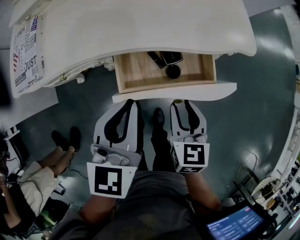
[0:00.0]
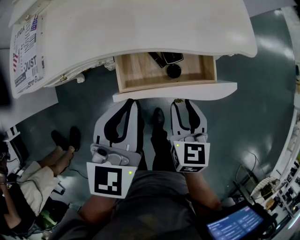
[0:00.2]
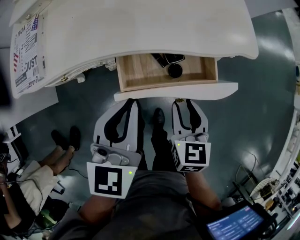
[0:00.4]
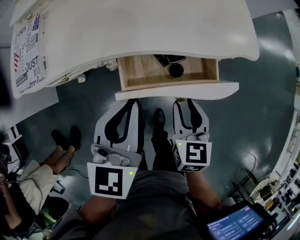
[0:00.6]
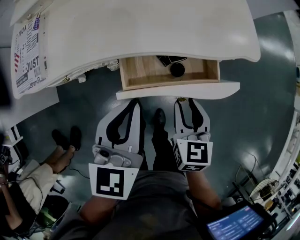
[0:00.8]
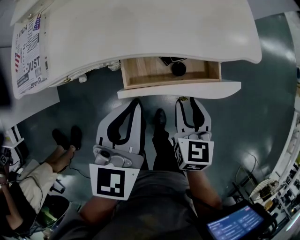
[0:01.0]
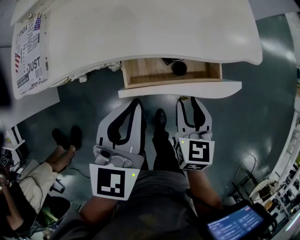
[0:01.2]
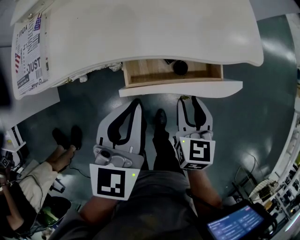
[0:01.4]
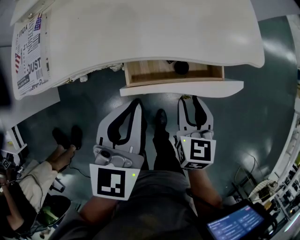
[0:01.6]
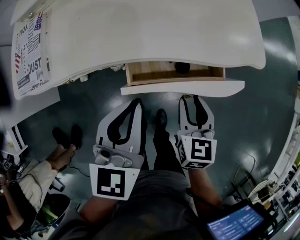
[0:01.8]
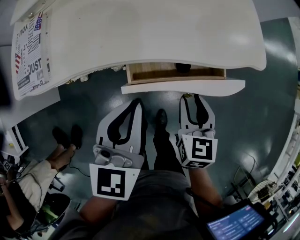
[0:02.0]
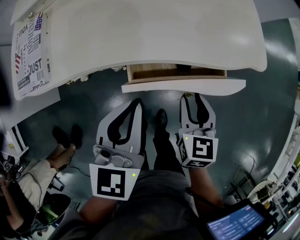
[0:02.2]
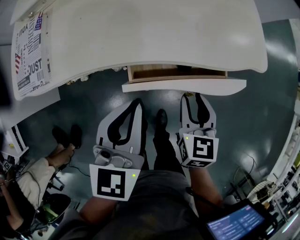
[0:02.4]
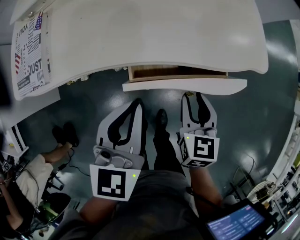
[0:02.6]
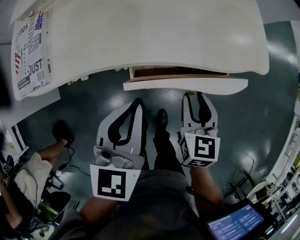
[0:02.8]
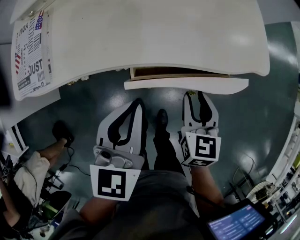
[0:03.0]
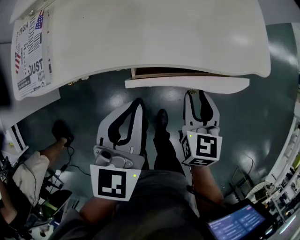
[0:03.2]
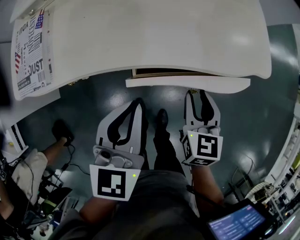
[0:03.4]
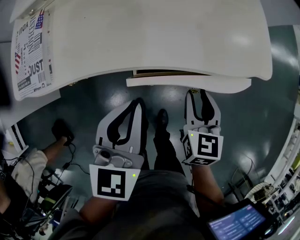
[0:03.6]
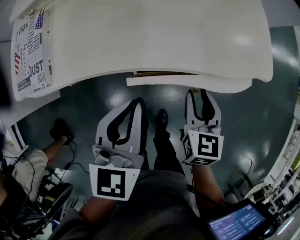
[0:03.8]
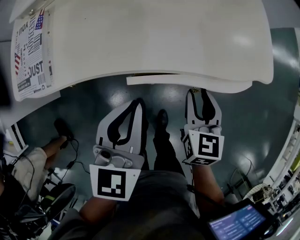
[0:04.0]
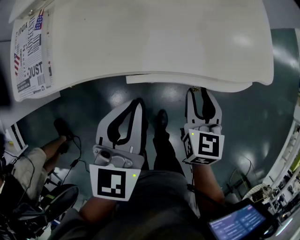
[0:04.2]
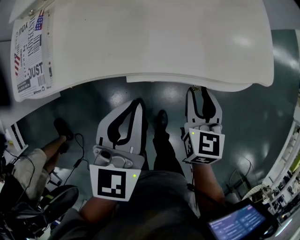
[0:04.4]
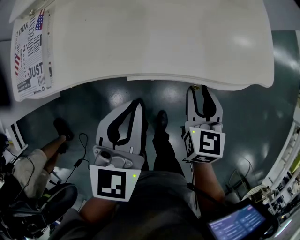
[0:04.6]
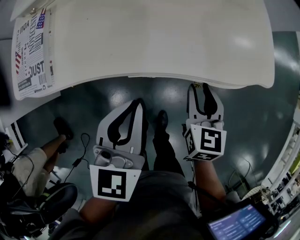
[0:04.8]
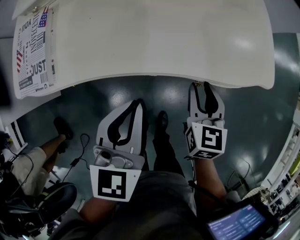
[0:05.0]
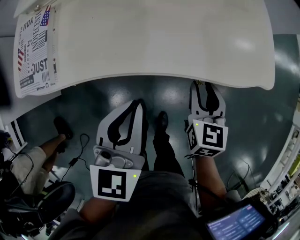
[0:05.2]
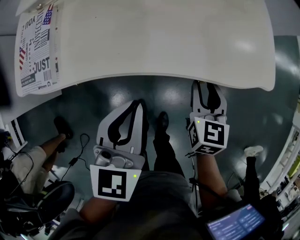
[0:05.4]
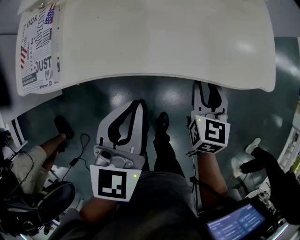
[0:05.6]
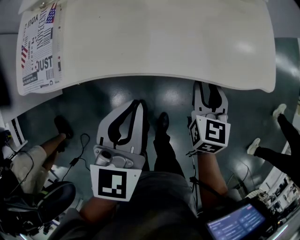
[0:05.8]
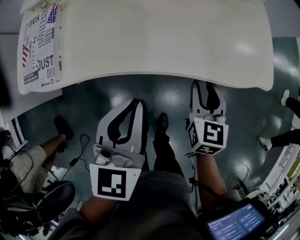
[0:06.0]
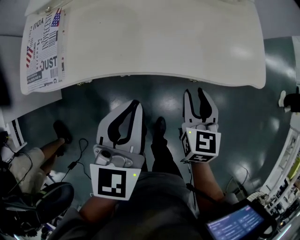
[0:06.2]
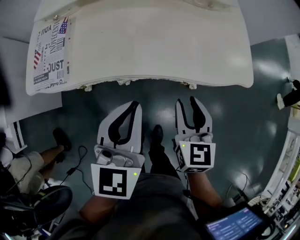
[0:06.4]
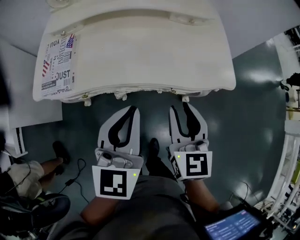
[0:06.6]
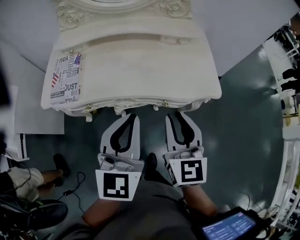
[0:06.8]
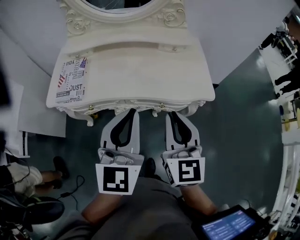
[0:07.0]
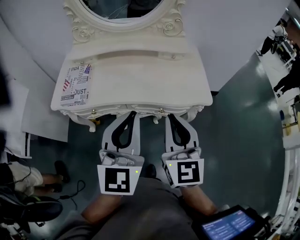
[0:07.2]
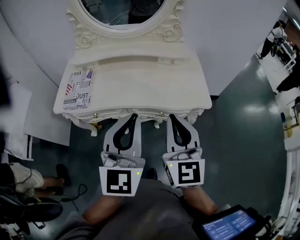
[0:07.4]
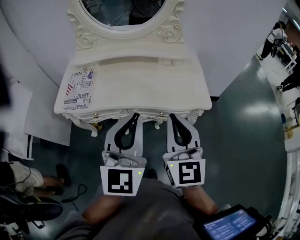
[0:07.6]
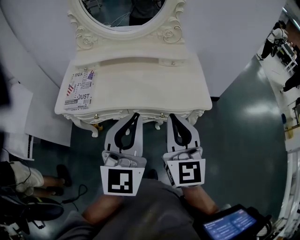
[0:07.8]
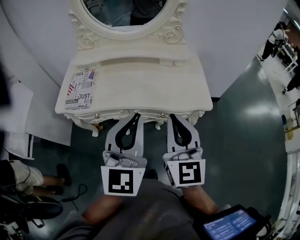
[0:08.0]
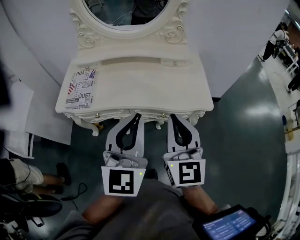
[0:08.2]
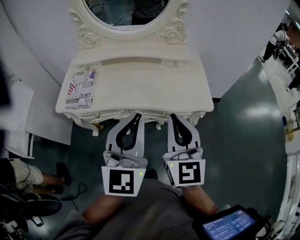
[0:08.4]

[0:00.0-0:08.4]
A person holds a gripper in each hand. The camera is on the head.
0:00.0 to 0:01.4: The grippers make only small movements.
0:01.4 to 0:02.8: The grippers stay close to where they were, moving slightly.
0:02.8 to 0:04.2: The grippers stay close to where they were, moving slightly.
0:04.2 to 0:05.6: The grippers stay close to where they were, moving slightly.
0:05.6 to 0:07.0: The left gripper goes some 25 cm upward, and swivels some 20 degrees, while the right gripper heads upward and backward, covering approximately 35 cm, rotates about 30 degrees, and closes.
0:07.0 to 0:08.4: The right gripper shifts by approximately 5 cm.

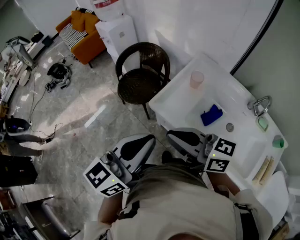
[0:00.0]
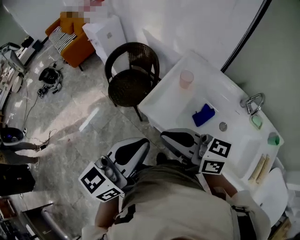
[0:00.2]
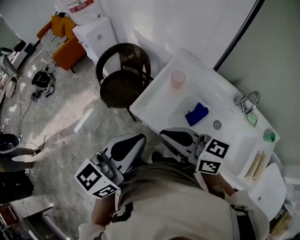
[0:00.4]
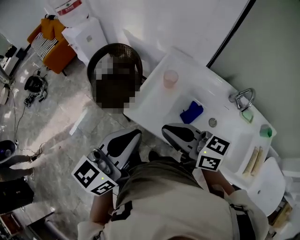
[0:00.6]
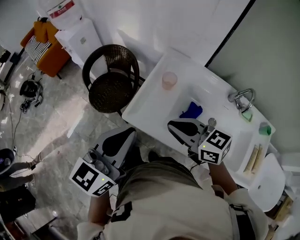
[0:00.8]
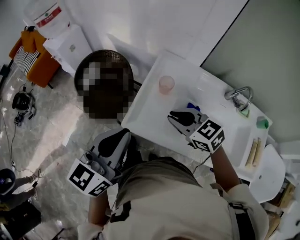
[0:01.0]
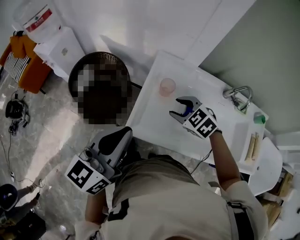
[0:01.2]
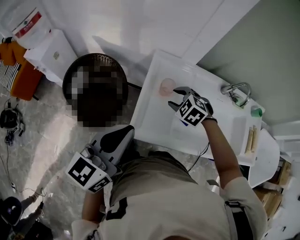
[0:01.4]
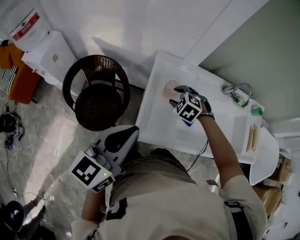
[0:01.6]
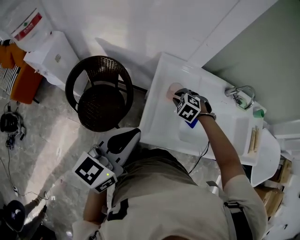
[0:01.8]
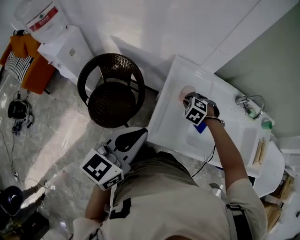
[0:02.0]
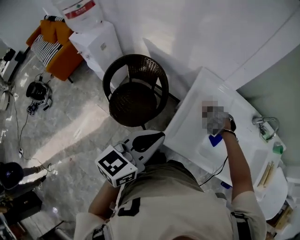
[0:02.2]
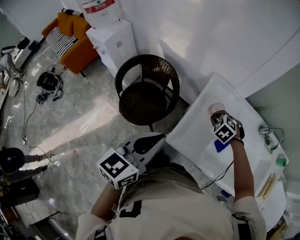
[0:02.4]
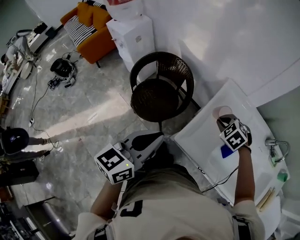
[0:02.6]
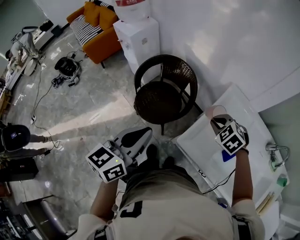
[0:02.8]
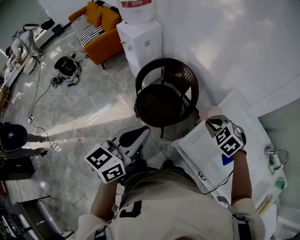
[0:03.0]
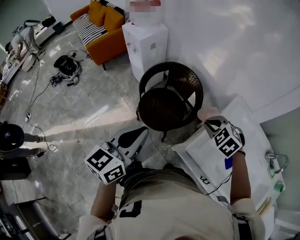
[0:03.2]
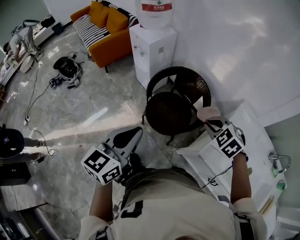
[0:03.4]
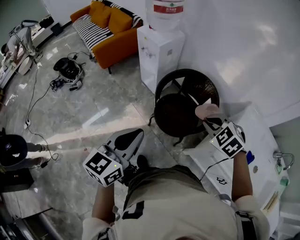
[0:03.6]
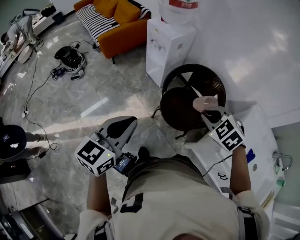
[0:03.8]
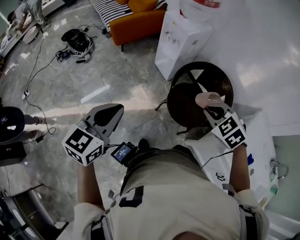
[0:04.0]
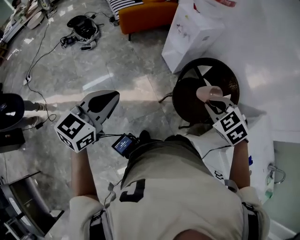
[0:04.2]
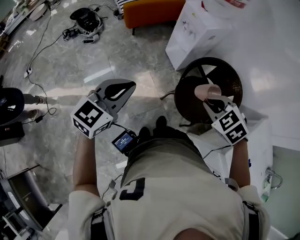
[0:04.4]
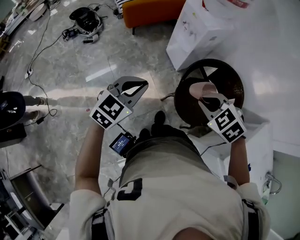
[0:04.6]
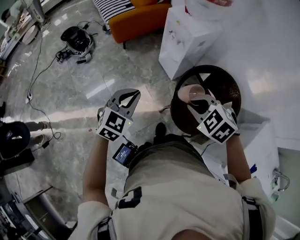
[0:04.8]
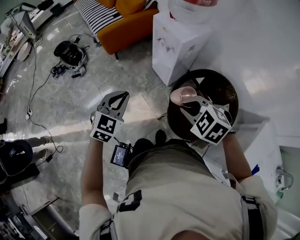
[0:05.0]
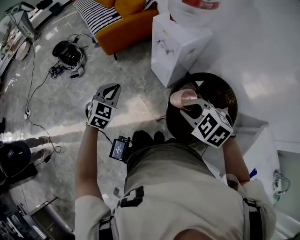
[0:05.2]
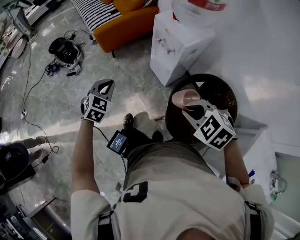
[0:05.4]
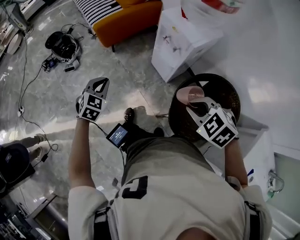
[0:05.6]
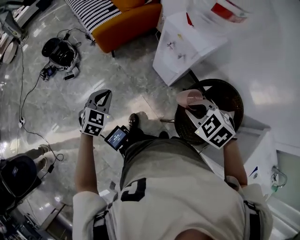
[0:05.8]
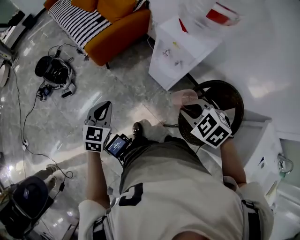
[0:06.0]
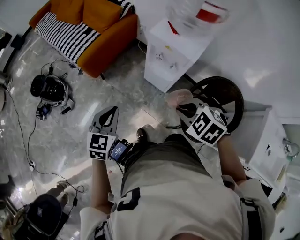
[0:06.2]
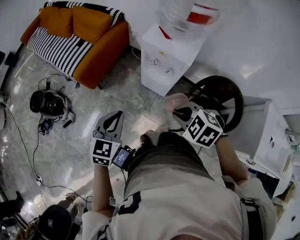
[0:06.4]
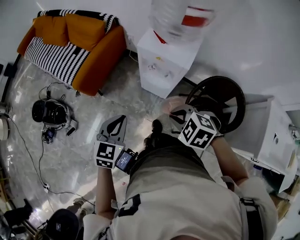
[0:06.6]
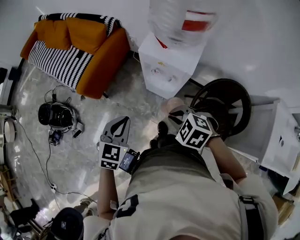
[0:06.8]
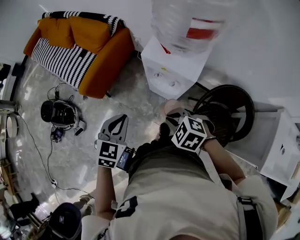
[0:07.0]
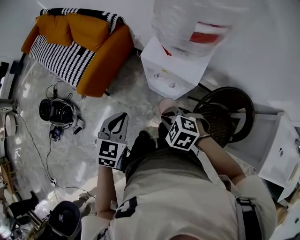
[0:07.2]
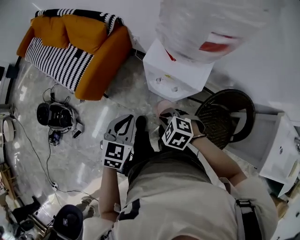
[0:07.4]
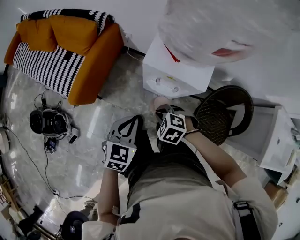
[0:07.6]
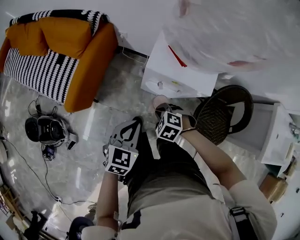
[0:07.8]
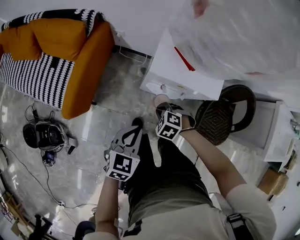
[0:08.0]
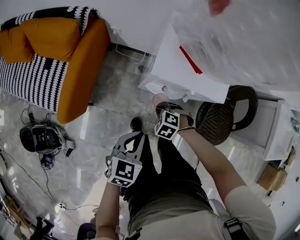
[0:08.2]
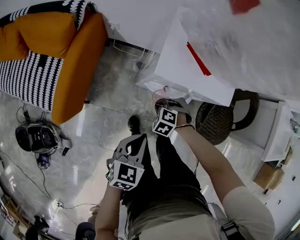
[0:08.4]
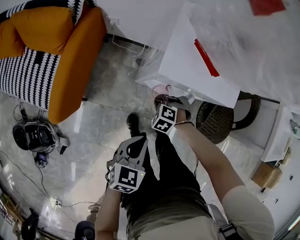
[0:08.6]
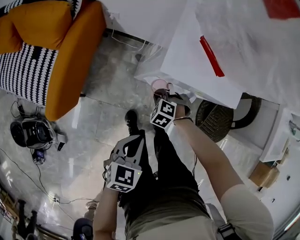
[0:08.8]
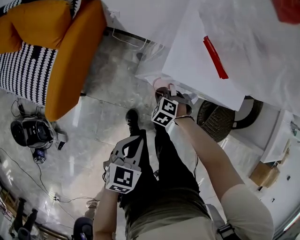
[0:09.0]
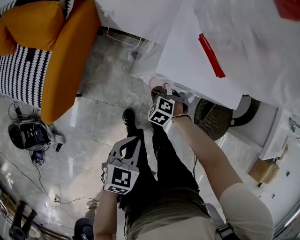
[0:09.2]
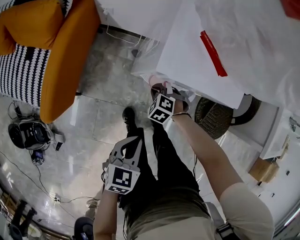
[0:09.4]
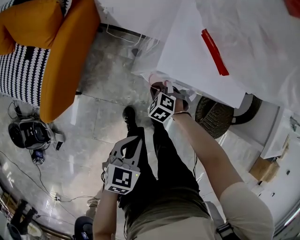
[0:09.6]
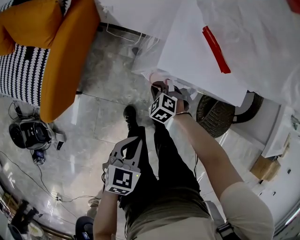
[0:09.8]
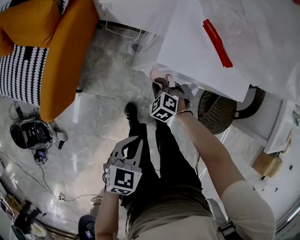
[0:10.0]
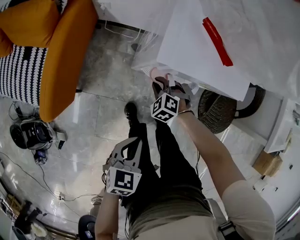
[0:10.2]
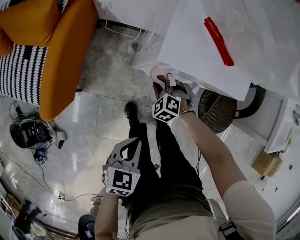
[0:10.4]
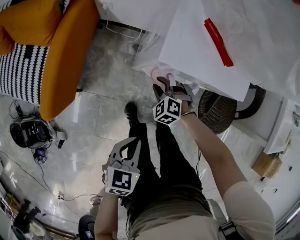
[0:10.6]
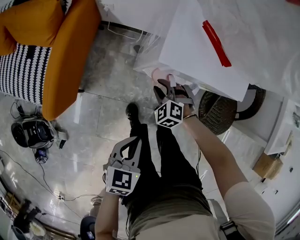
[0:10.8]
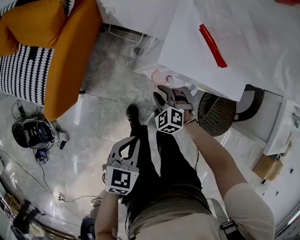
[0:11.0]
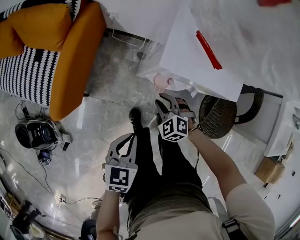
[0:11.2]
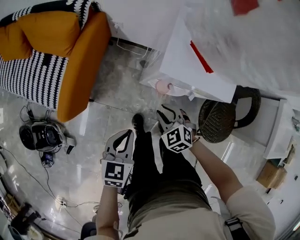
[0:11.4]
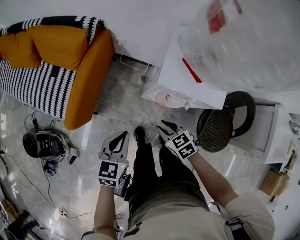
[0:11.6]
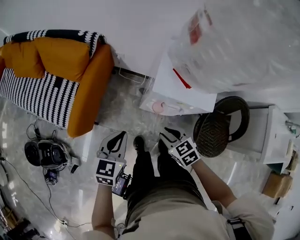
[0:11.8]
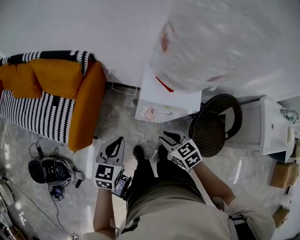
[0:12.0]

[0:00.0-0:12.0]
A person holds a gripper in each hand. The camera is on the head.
0:00.0 to 0:01.6: The right gripper changes place by about 40 cm, tilts its fingers about 60 degrees downward, and opens its fingers. The left gripper shifts by roughly 30 cm, and rotates about 30 degrees.
0:01.6 to 0:03.0: The right gripper shifts by about 20 cm, turns by approximately 30 degrees, and closes its fingers; the left gripper ends up roughly 20 cm from where it was, and changes its angle by about 40 degrees.
0:03.0 to 0:04.4: The two grippers travel together, to the left, about 50 cm. The left gripper rotates approximately 20 degrees.
0:04.4 to 0:06.0: Both grippers travel together forward, about 35 cm.
0:06.0 to 0:07.6: The right gripper moves forward and downward, roughly 30 cm. The left gripper moves forward and to the right, approximately 25 cm, and swivels roughly 30 degrees.
0:07.6 to 0:09.0: The left gripper travels downward by roughly 15 cm, and rotates some 20 degrees. Meanwhile the right gripper travels downward by some 25 cm.
0:09.0 to 0:10.4: The grippers move only a little.
0:10.4 to 0:12.0: The right gripper travels upward by approximately 30 cm, and rotates about 40 degrees. Meanwhile the left gripper goes about 20 cm upward, and swivels roughly 20 degrees.

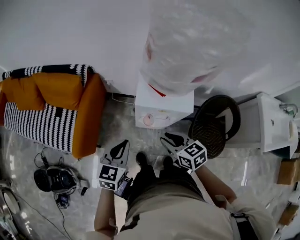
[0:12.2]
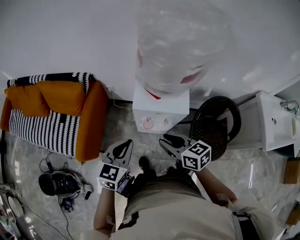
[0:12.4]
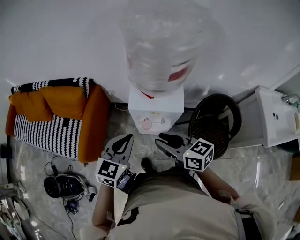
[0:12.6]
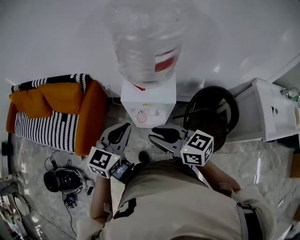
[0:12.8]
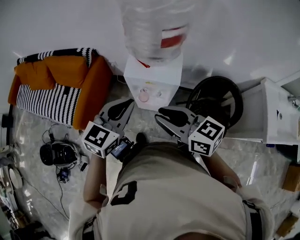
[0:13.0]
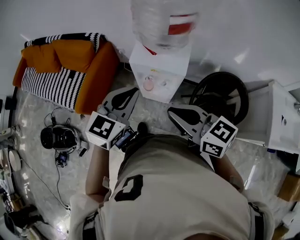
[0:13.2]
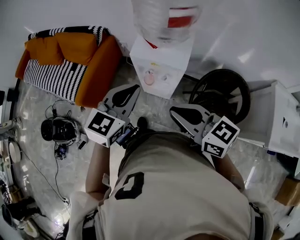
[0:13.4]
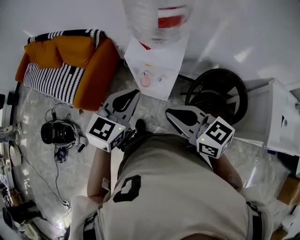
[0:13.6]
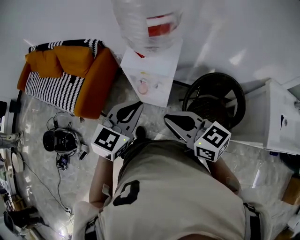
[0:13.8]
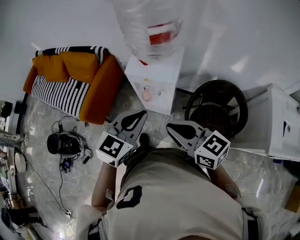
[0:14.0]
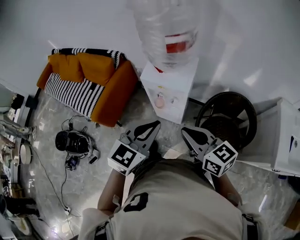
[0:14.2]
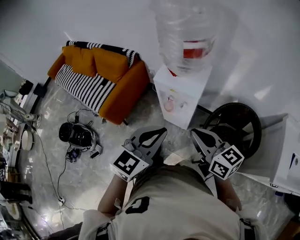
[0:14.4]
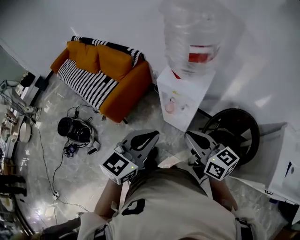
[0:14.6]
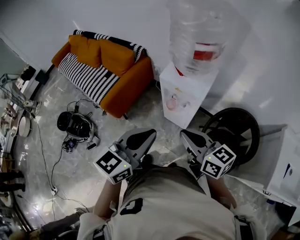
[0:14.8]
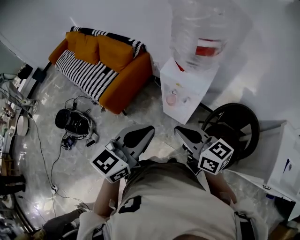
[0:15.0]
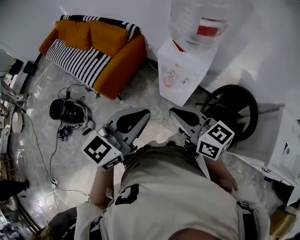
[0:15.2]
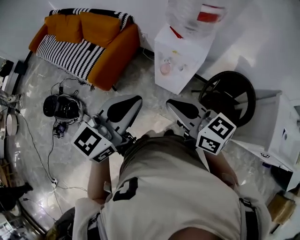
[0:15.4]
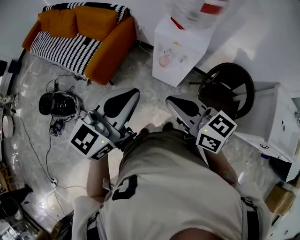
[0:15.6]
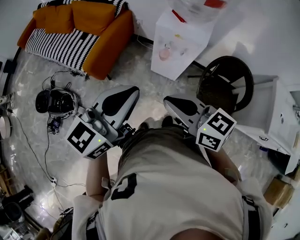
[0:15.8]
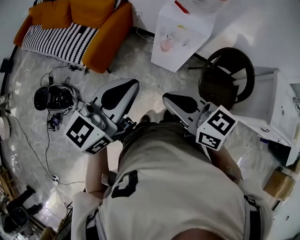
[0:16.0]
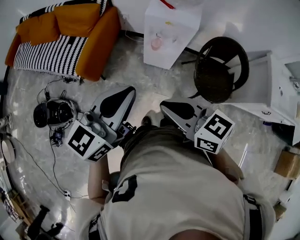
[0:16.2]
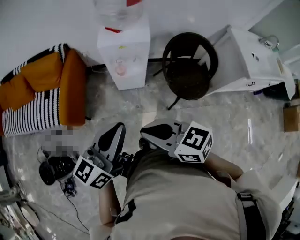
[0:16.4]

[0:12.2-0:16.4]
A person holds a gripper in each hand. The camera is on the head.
0:12.2 to 0:13.6: The right gripper heads upward, backward and to the right, covering roughly 25 cm, rotates some 30 degrees, and closes. Meanwhile the left gripper travels to the right, upward and backward by some 25 cm.
0:13.6 to 0:15.0: The right gripper ends up some 5 cm from where it was, while the left gripper moves backward and upward, some 15 cm.
0:15.0 to 0:16.4: The right gripper is displaced to the left and backward by roughly 20 cm. Meanwhile the left gripper is displaced to the left, downward and backward by roughly 15 cm, and turns by about 30 degrees.
